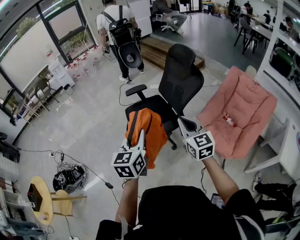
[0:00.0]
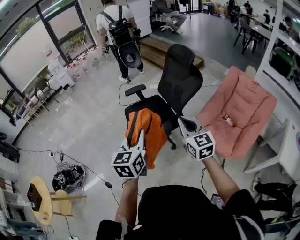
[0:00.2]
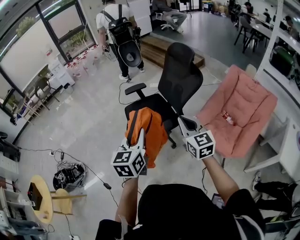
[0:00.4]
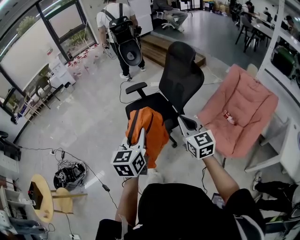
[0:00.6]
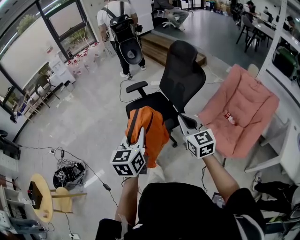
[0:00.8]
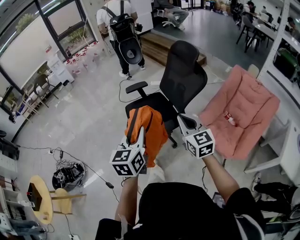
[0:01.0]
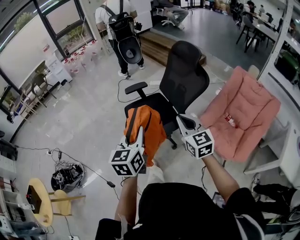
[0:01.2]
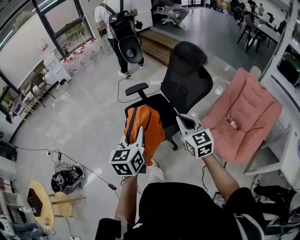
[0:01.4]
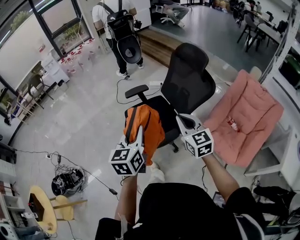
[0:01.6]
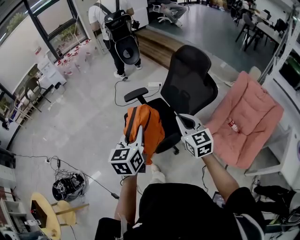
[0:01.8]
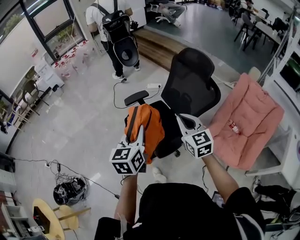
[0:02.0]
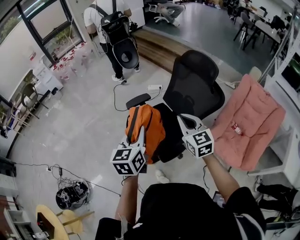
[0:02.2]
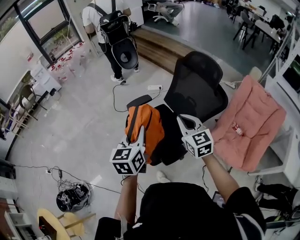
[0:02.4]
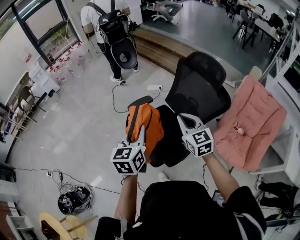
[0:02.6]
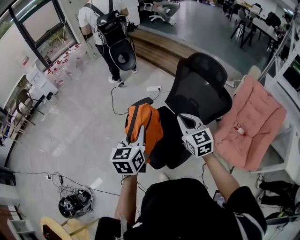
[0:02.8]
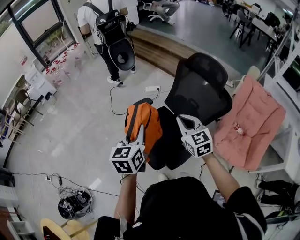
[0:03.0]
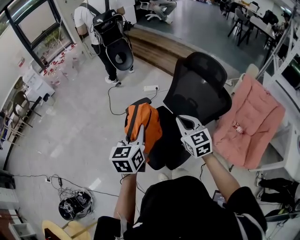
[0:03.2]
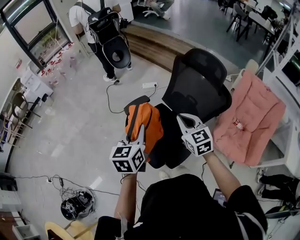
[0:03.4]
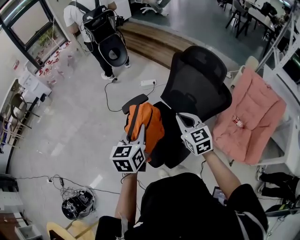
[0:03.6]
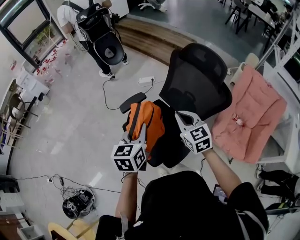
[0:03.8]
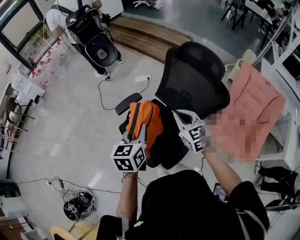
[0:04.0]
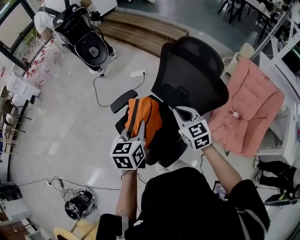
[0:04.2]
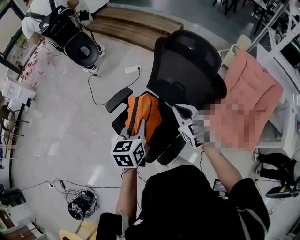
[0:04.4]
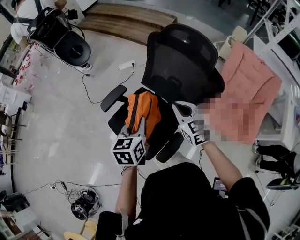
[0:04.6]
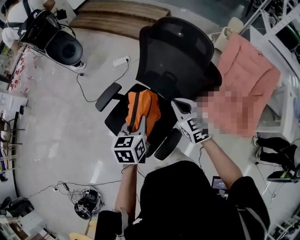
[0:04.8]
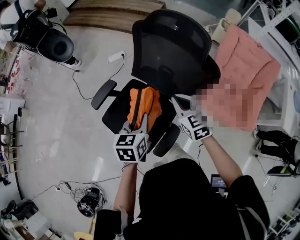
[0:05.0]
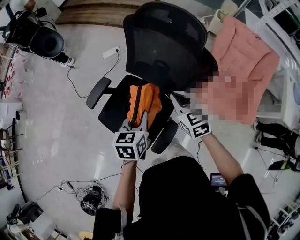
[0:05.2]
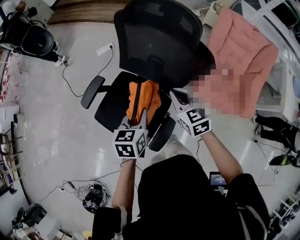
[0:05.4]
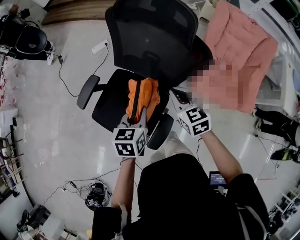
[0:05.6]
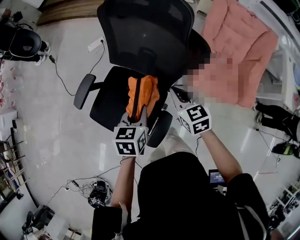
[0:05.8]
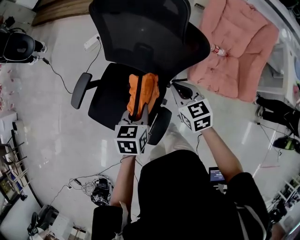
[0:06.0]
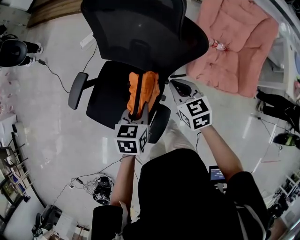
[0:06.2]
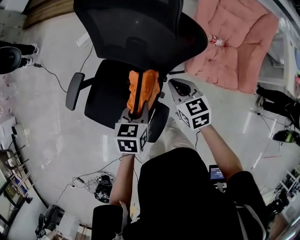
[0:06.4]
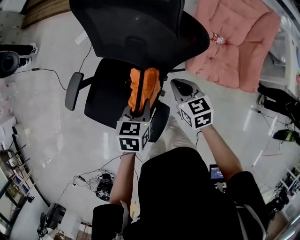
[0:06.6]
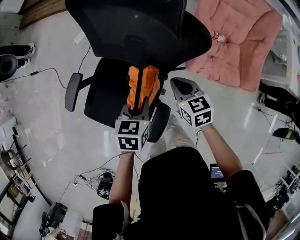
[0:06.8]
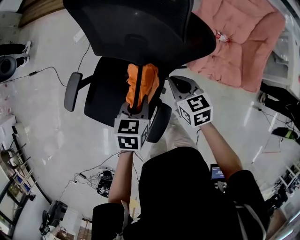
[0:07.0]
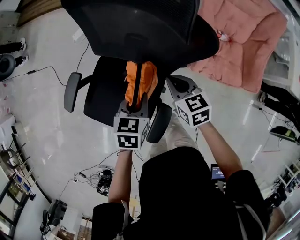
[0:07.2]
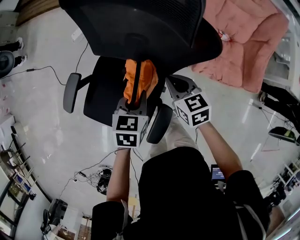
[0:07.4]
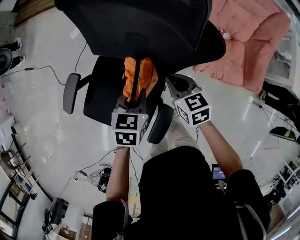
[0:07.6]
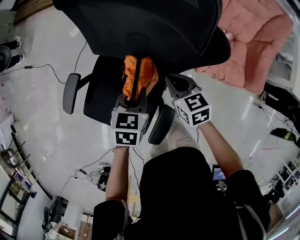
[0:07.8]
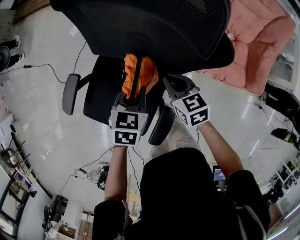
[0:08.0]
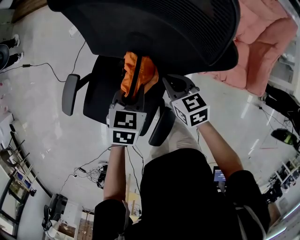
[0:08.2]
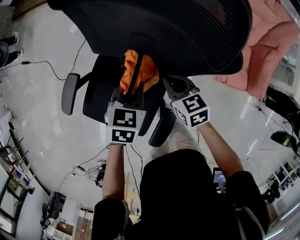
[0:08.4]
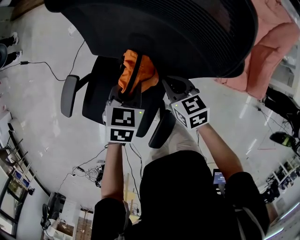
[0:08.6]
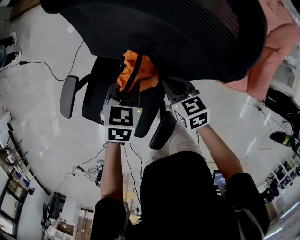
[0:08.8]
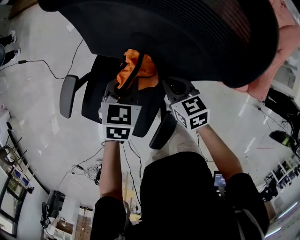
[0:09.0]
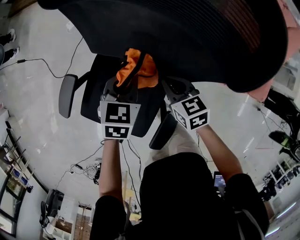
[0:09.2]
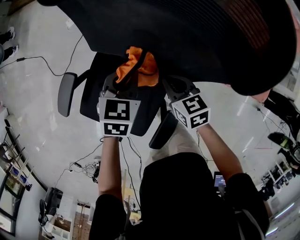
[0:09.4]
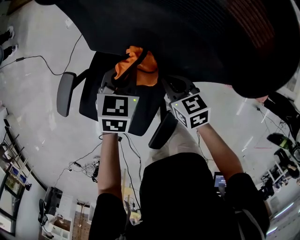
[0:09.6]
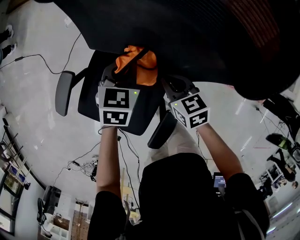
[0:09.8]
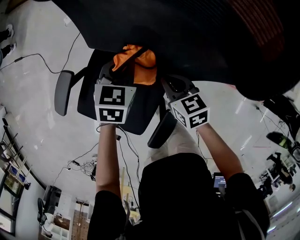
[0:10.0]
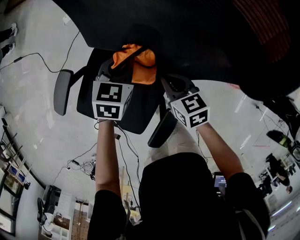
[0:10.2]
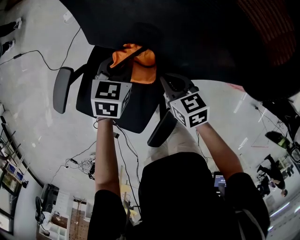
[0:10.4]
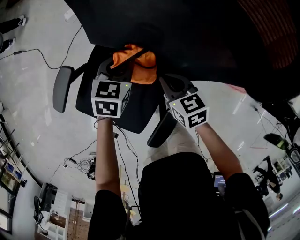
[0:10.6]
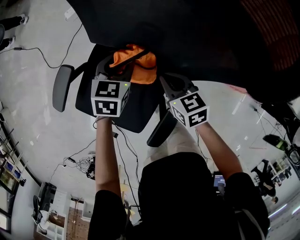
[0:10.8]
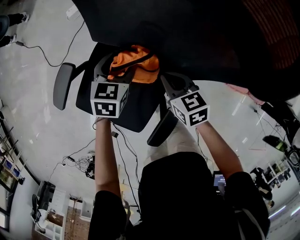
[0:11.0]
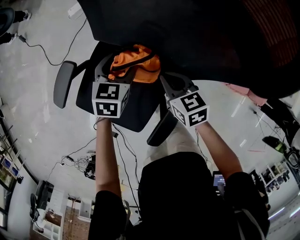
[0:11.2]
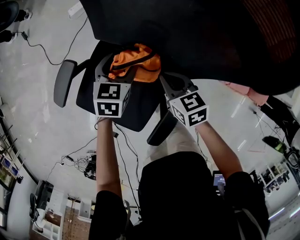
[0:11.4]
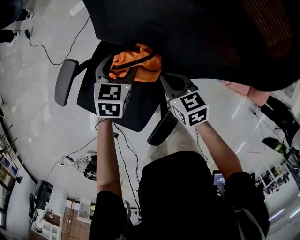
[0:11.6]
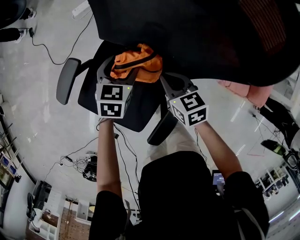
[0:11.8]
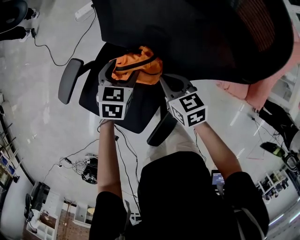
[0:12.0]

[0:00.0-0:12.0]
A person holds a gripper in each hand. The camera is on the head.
0:00.0 to 0:01.6: Both grippers travel together forward, some 15 cm.
0:01.6 to 0:03.0: The grippers both shift forward and to the left by roughly 25 cm.
0:03.0 to 0:04.4: The grippers both shift forward, to the right and downward by approximately 15 cm.
0:04.4 to 0:06.0: The two grippers go roughly 25 cm to the right and downward. The left gripper turns by some 30 degrees. Meanwhile the right gripper rotates roughly 20 degrees.
0:06.0 to 0:07.6: The right gripper goes about 10 cm downward. Meanwhile the left gripper travels forward and downward by approximately 10 cm.
0:07.6 to 0:09.0: The left gripper moves forward, about 10 cm; the right gripper moves downward, some 5 cm.
0:09.0 to 0:10.4: The left gripper travels downward by roughly 5 cm.
0:10.4 to 0:12.0: The left gripper travels to the left by roughly 5 cm, and opens, while the right gripper moves roughly 5 cm.

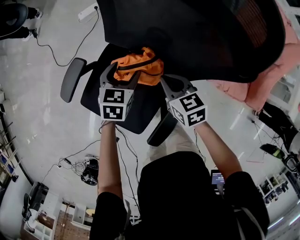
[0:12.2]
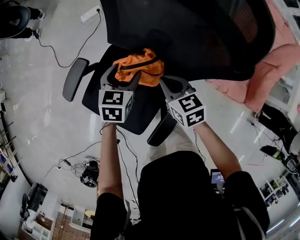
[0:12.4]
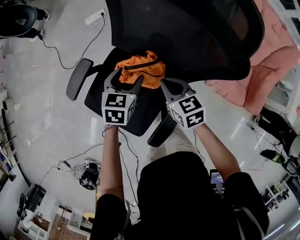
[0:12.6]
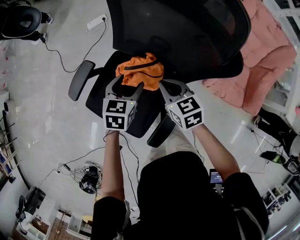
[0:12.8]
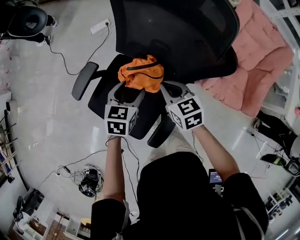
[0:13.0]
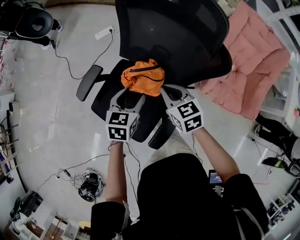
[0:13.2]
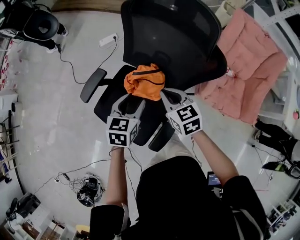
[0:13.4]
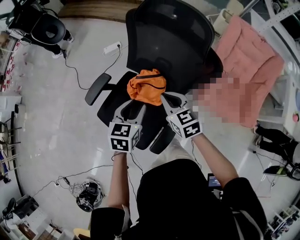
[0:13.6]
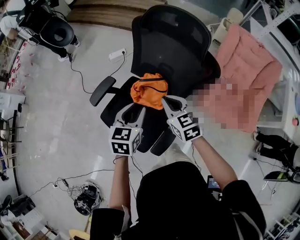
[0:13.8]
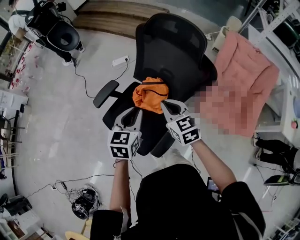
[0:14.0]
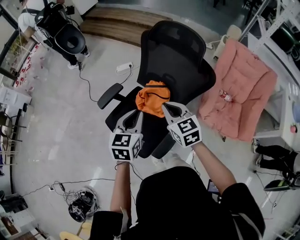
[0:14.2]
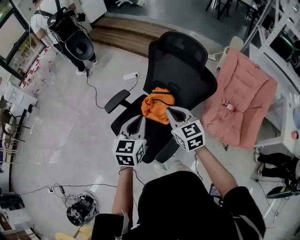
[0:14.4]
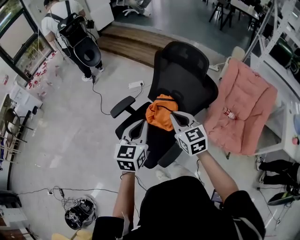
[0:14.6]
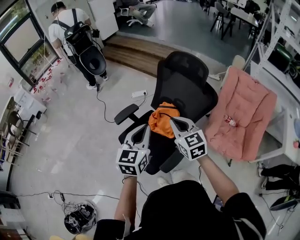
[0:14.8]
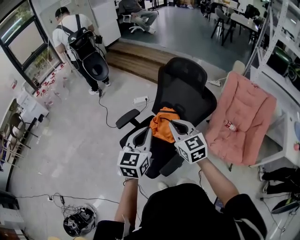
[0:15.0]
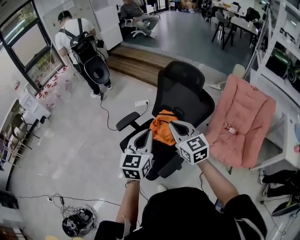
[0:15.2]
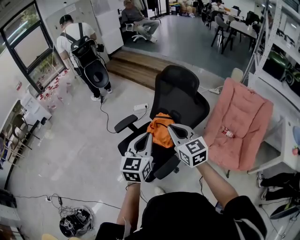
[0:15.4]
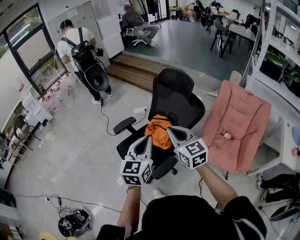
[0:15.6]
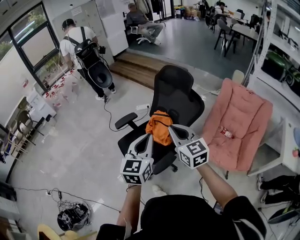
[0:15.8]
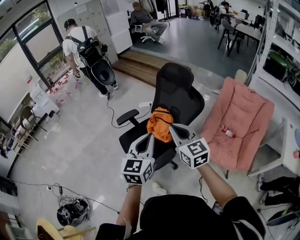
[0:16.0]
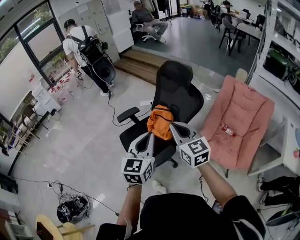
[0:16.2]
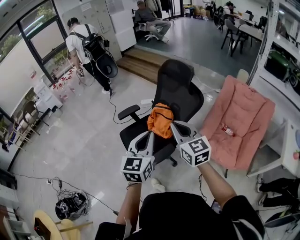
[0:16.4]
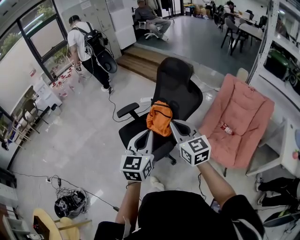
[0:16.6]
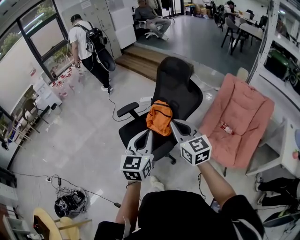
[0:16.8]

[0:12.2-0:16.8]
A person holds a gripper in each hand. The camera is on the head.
0:12.2 to 0:13.8: The grippers both shift upward and backward by roughly 25 cm. The left gripper closes, while the right gripper rotates roughly 20 degrees.
0:13.8 to 0:15.2: Both grippers travel together upward and backward, about 25 cm. The left gripper changes its angle by approximately 30 degrees, and closes its fingers, while the right gripper turns by some 20 degrees.
0:15.2 to 0:16.8: Both grippers travel together backward and to the right, approximately 20 cm.

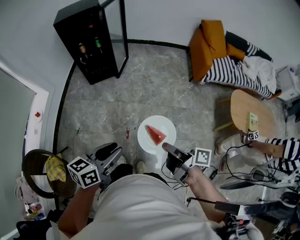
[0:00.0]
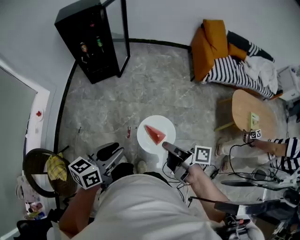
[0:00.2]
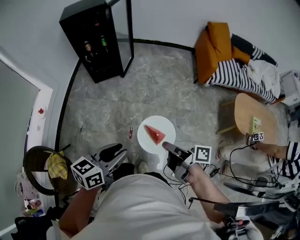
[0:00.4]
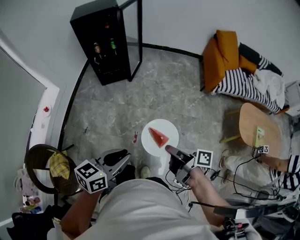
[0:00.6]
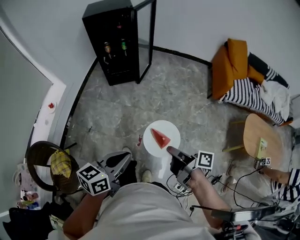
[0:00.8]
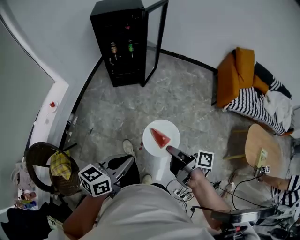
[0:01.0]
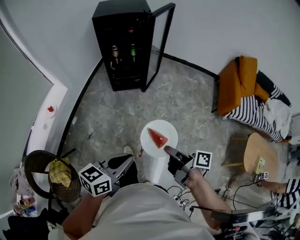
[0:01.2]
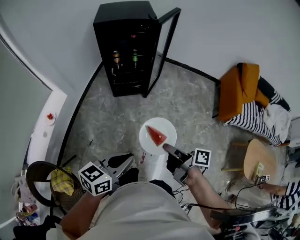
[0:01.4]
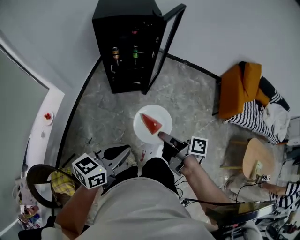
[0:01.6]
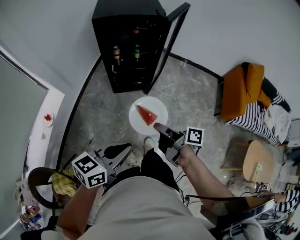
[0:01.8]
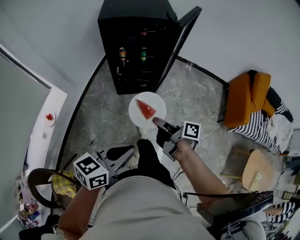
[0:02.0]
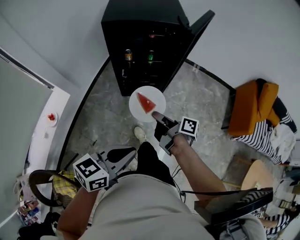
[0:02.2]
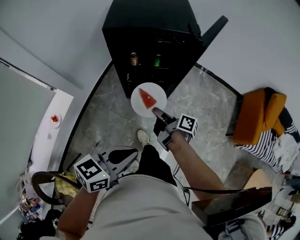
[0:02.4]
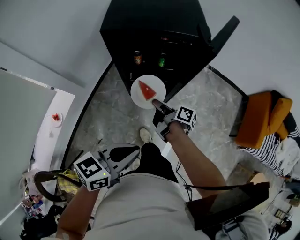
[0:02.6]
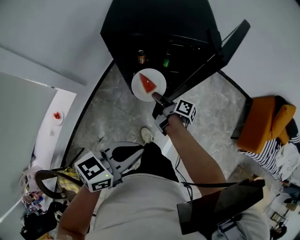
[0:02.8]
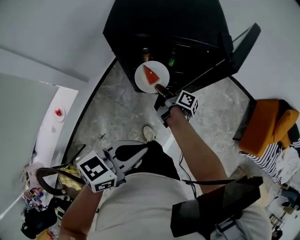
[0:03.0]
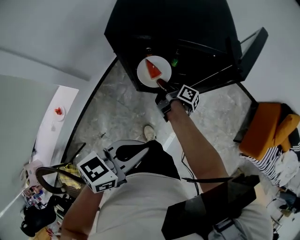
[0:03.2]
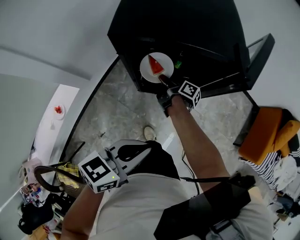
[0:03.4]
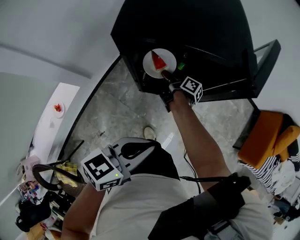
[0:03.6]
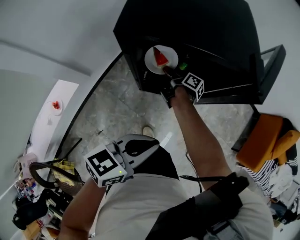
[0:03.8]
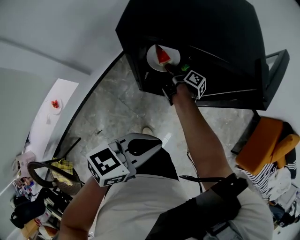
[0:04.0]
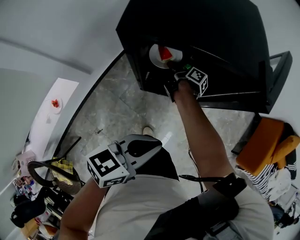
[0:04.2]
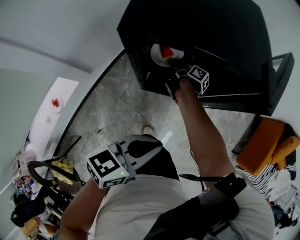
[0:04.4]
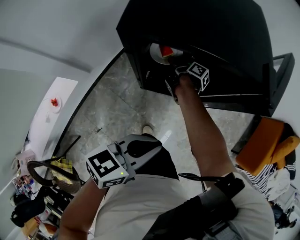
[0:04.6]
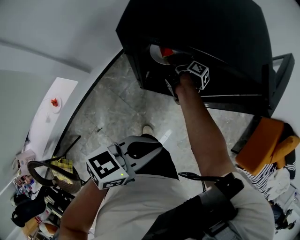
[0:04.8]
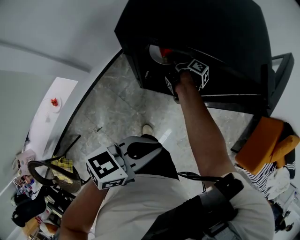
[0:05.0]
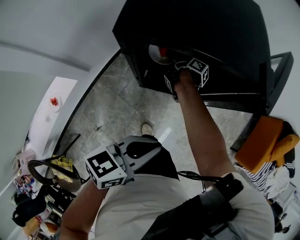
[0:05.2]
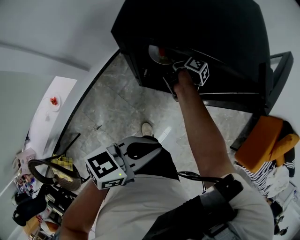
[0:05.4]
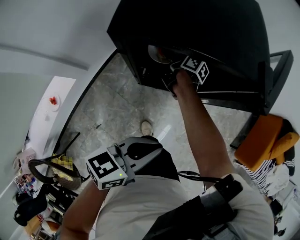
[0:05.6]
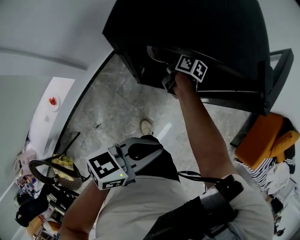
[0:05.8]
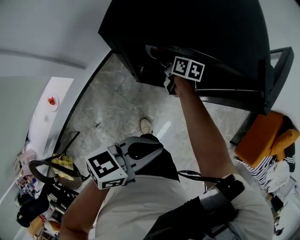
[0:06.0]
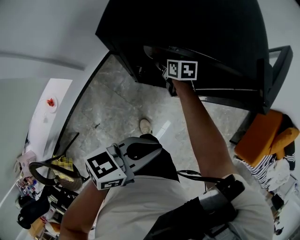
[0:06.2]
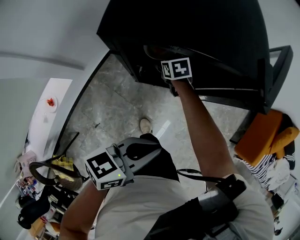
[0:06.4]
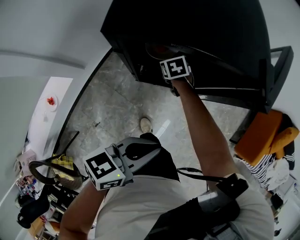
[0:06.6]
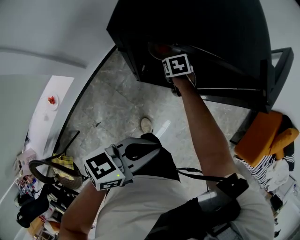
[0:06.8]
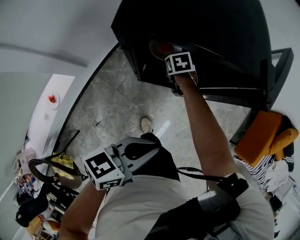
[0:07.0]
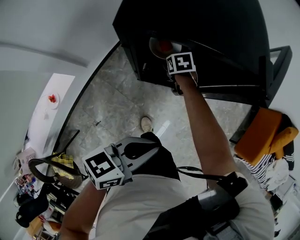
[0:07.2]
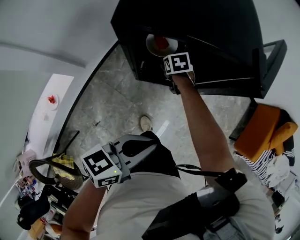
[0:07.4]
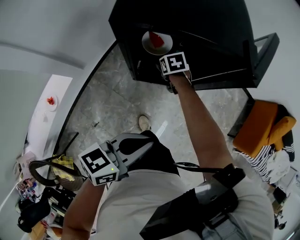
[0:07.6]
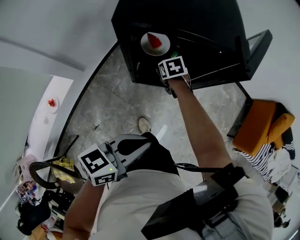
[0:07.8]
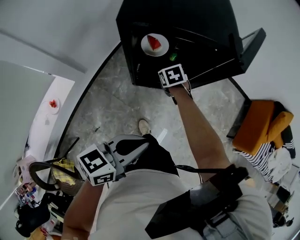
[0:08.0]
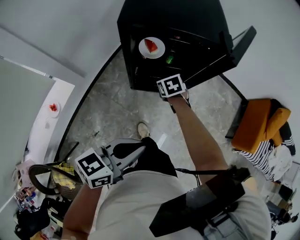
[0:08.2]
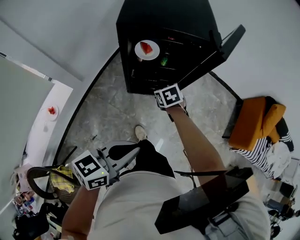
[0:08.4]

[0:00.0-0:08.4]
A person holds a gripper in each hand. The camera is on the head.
0:00.0 to 0:01.4: The left gripper moves about 25 cm, and closes.
0:01.4 to 0:02.8: The left gripper shifts by about 35 cm.
0:02.8 to 0:04.2: The left gripper changes place by some 15 cm.
0:07.0 to 0:08.4: The left gripper changes place by roughly 15 cm.
